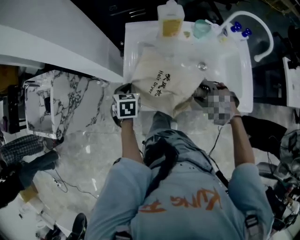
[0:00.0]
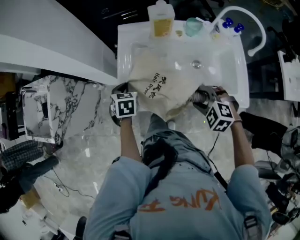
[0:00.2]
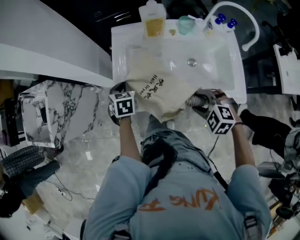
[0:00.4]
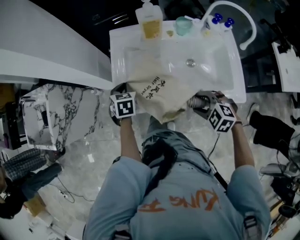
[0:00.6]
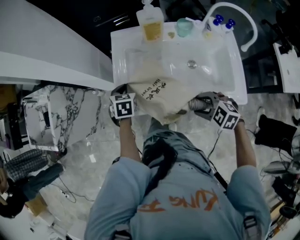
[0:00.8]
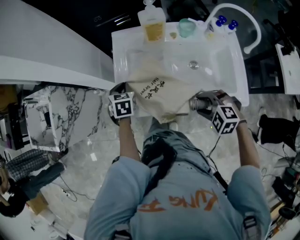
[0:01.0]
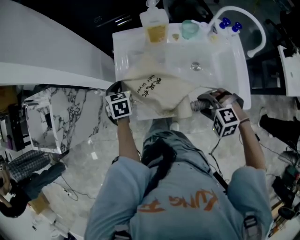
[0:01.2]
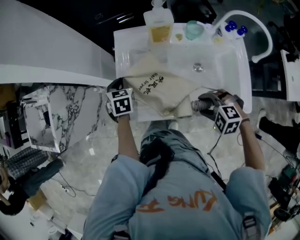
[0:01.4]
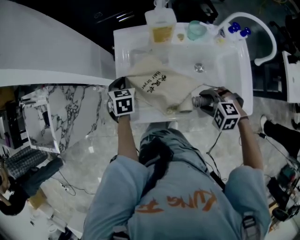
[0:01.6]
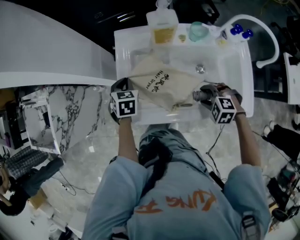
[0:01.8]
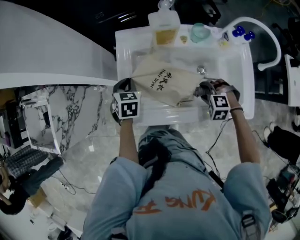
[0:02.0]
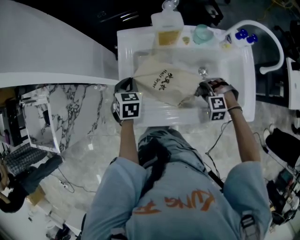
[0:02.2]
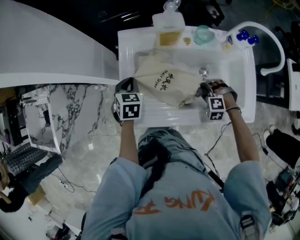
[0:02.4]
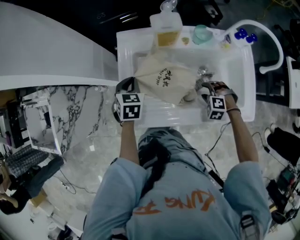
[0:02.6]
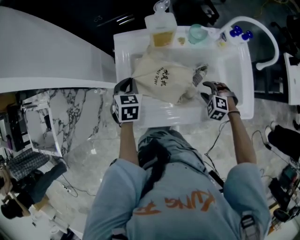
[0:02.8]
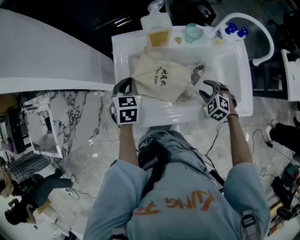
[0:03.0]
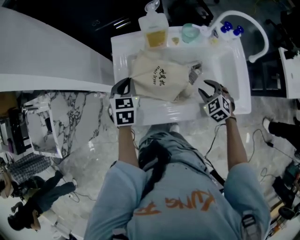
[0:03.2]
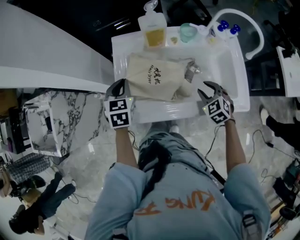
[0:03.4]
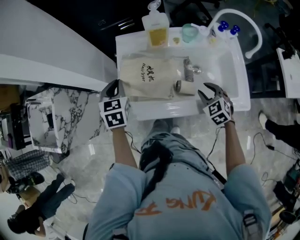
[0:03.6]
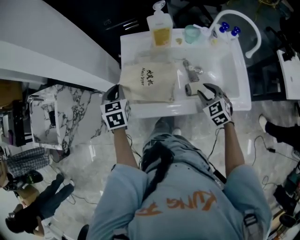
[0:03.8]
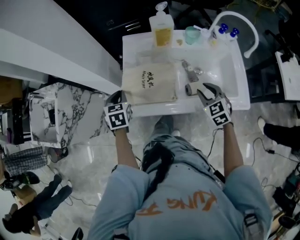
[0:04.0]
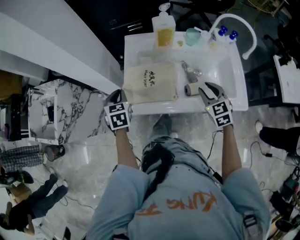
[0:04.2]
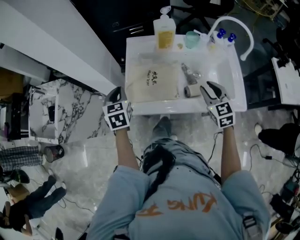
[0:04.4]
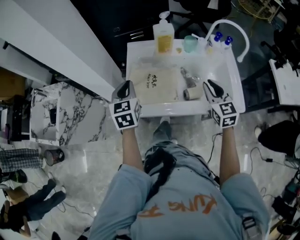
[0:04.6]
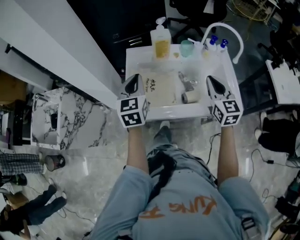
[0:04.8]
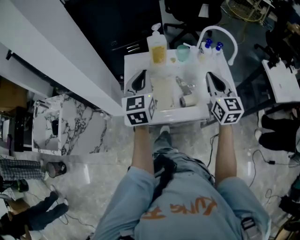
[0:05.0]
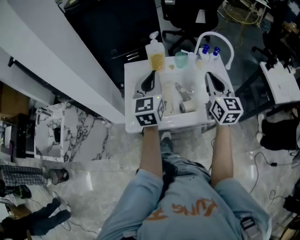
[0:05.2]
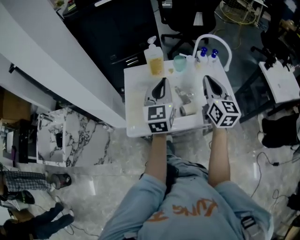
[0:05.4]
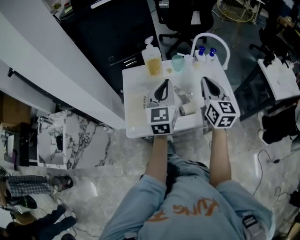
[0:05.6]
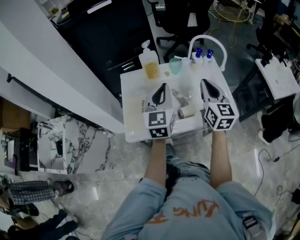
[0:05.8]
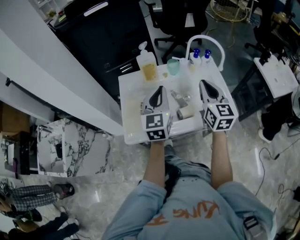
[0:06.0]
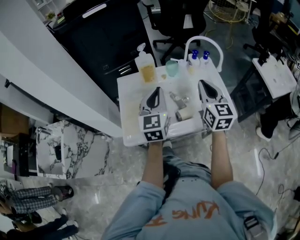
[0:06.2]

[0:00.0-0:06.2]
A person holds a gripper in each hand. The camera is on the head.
0:00.0 to 0:01.6: The left gripper moves forward, roughly 10 cm, while the right gripper travels backward and back again, about 10 cm each way.
0:01.6 to 0:03.2: The right gripper moves about 10 cm downward and comes back, and turns by roughly 40 degrees; the left gripper shifts some 5 cm upward.
0:03.2 to 0:04.6: The left gripper swings up and down, about 10 cm each way, with 2 reversals, and swivels approximately 20 degrees. The right gripper shifts some 20 cm upward, and tilts its fingers some 30 degrees upward.
0:04.6 to 0:06.2: The left gripper shifts approximately 20 cm to the right and upward, and turns by some 30 degrees, while the right gripper shifts some 10 cm upward, and rotates about 20 degrees.

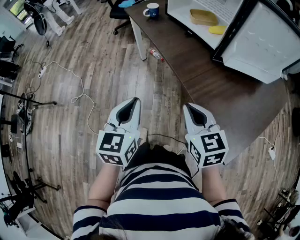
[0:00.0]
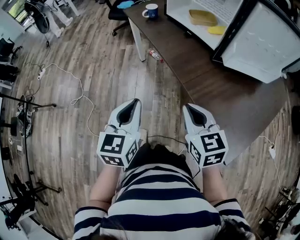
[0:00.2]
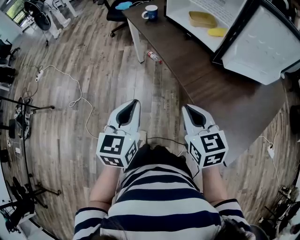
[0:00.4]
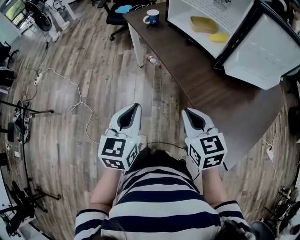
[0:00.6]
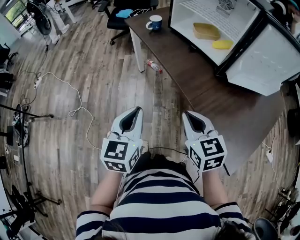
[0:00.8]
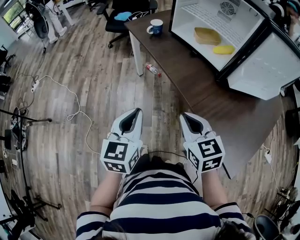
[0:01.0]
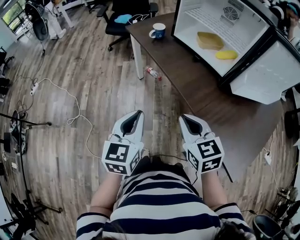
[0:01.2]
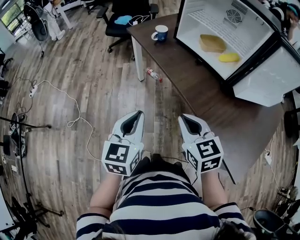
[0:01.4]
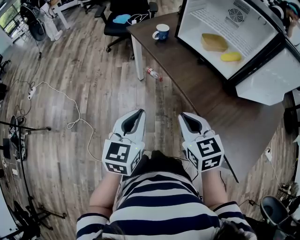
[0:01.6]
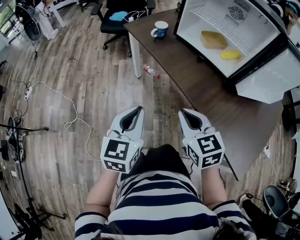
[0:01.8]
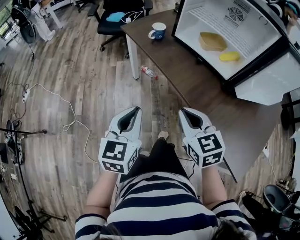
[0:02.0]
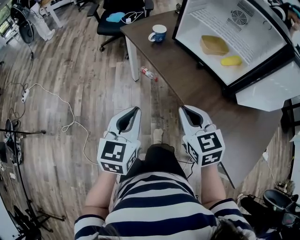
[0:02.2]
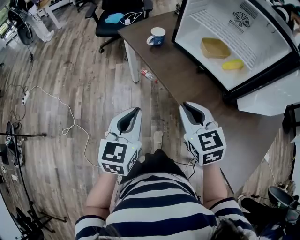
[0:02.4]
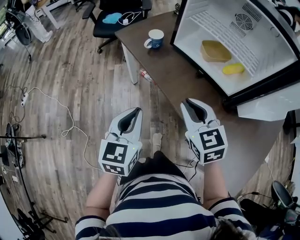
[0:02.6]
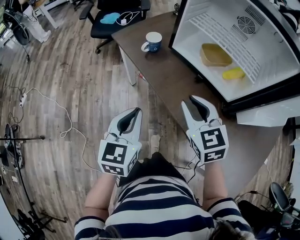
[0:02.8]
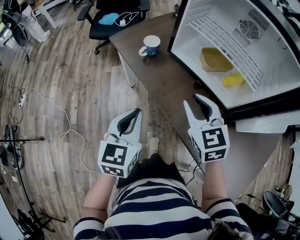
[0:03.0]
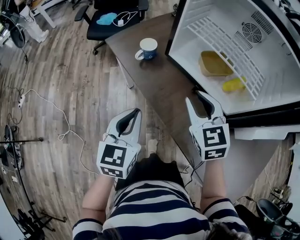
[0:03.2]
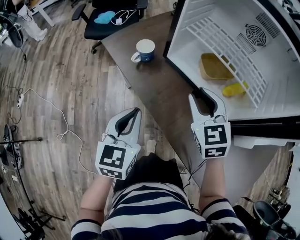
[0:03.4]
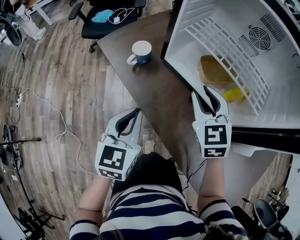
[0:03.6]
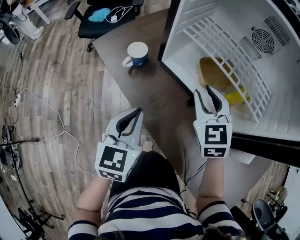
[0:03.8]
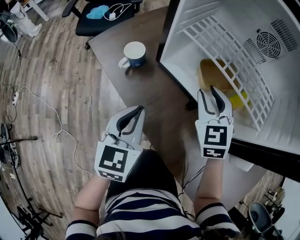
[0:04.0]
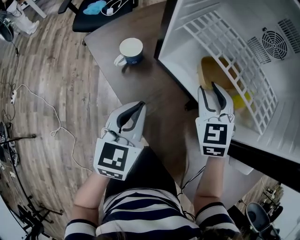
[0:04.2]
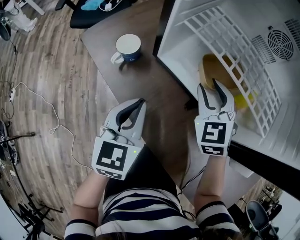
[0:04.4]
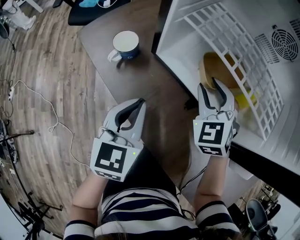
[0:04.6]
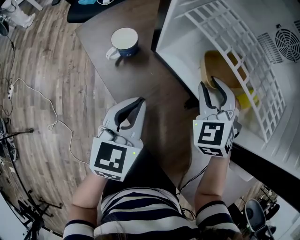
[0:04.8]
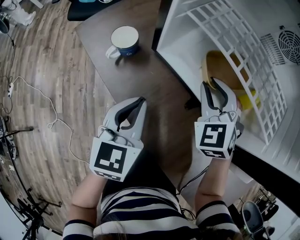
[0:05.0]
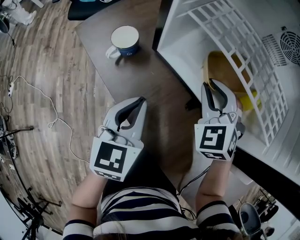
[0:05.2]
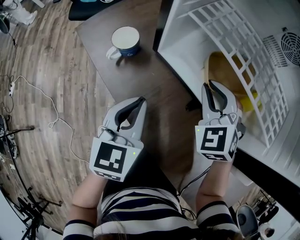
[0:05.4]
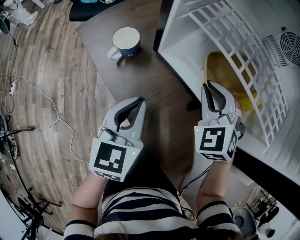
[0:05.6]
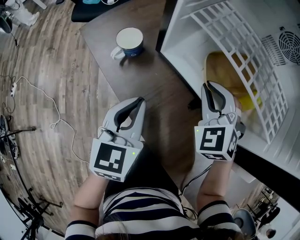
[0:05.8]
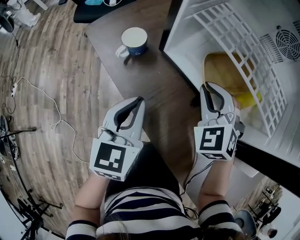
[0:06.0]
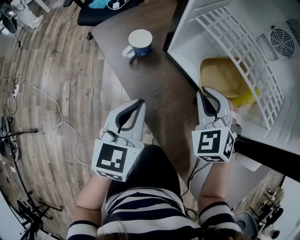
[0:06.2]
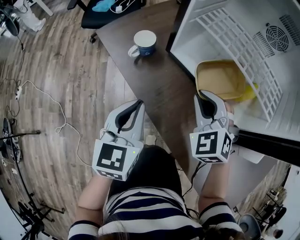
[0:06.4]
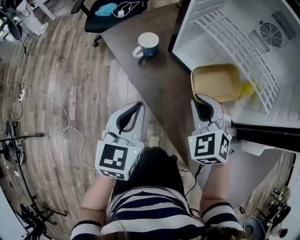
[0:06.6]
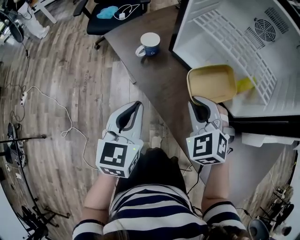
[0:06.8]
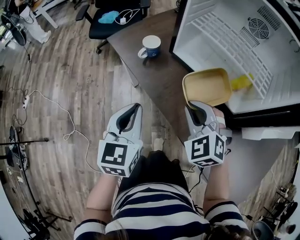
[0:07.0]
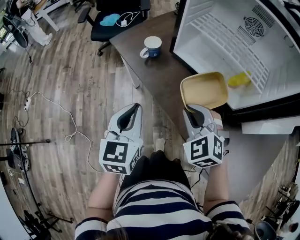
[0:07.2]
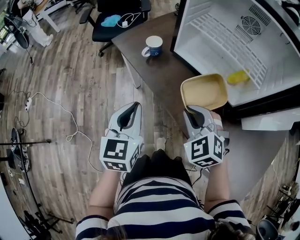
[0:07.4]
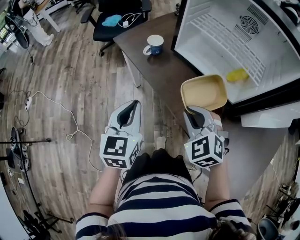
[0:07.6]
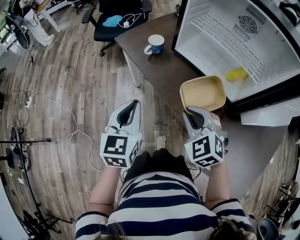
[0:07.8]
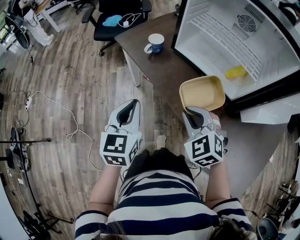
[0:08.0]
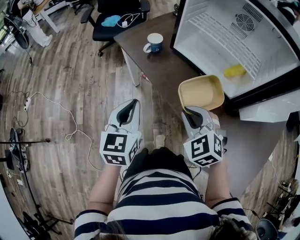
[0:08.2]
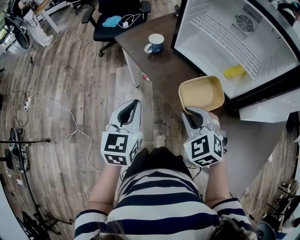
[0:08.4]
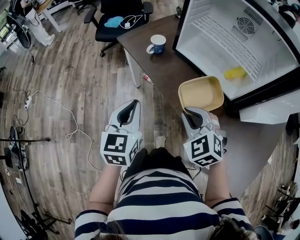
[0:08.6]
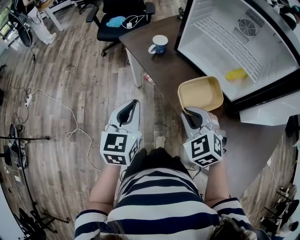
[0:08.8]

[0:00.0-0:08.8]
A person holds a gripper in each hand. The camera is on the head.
0:00.0 to 0:01.4: The two grippers go about 15 cm forward and to the left.
0:01.4 to 0:03.0: The two grippers go roughly 25 cm forward. The right gripper opens.
0:03.0 to 0:04.4: The grippers both shift forward and to the right by roughly 20 cm. The right gripper changes its angle by about 20 degrees.
0:04.4 to 0:05.8: The right gripper closes up.
0:05.8 to 0:07.4: The left gripper heads backward, to the left and upward, covering roughly 20 cm, while the right gripper travels backward and to the left by about 25 cm.
0:07.4 to 0:08.8: The right gripper moves backward, some 5 cm. The left gripper shifts by about 5 cm.

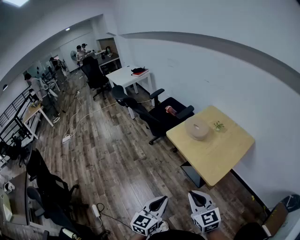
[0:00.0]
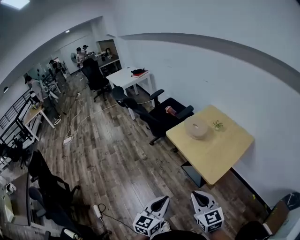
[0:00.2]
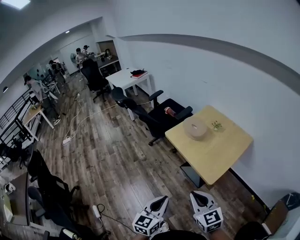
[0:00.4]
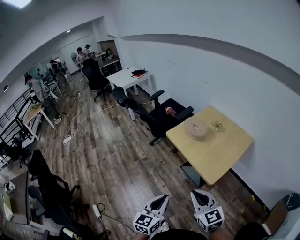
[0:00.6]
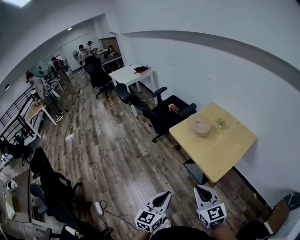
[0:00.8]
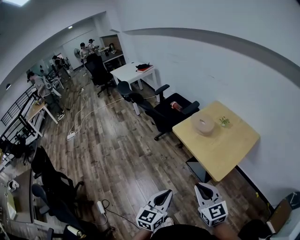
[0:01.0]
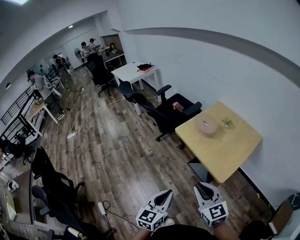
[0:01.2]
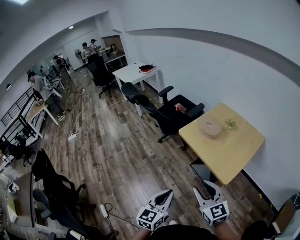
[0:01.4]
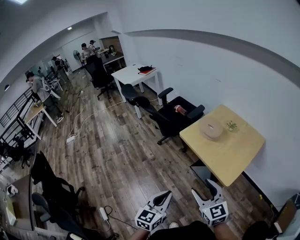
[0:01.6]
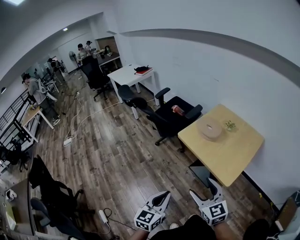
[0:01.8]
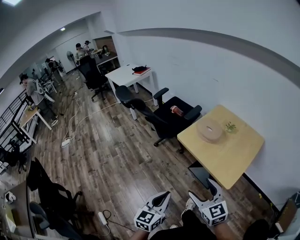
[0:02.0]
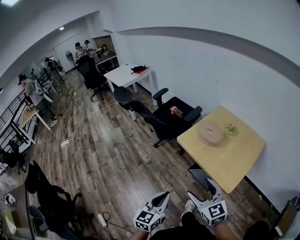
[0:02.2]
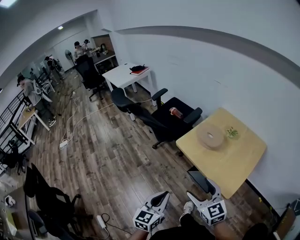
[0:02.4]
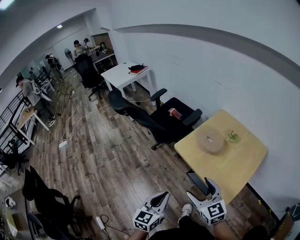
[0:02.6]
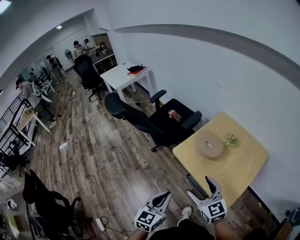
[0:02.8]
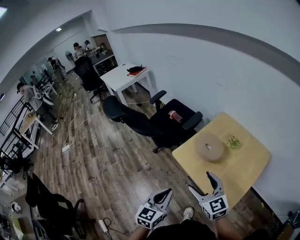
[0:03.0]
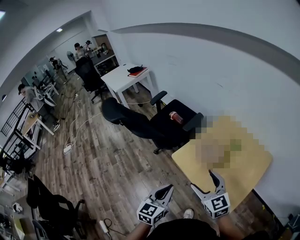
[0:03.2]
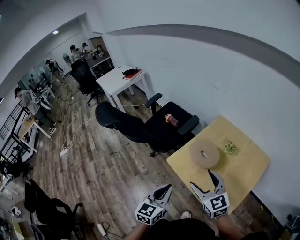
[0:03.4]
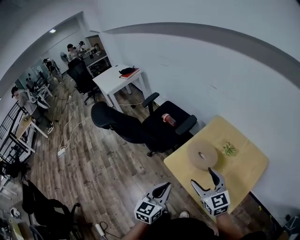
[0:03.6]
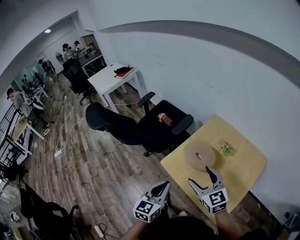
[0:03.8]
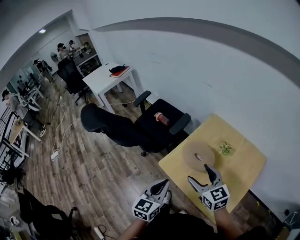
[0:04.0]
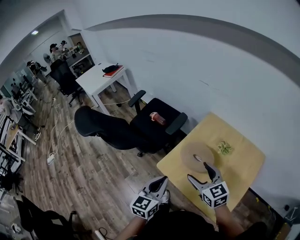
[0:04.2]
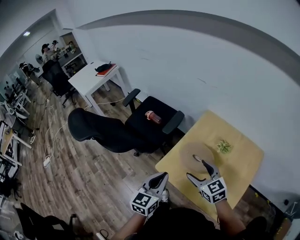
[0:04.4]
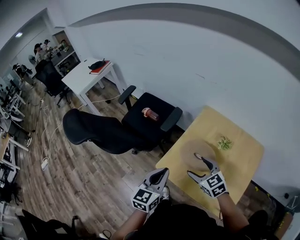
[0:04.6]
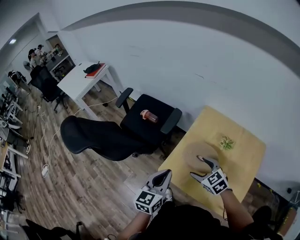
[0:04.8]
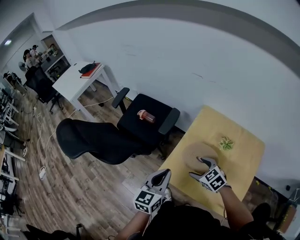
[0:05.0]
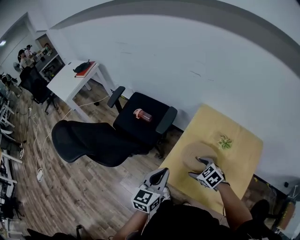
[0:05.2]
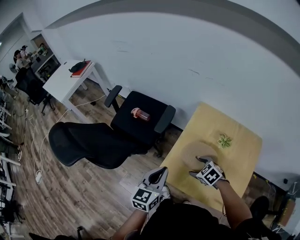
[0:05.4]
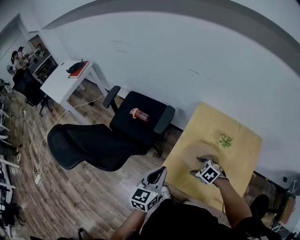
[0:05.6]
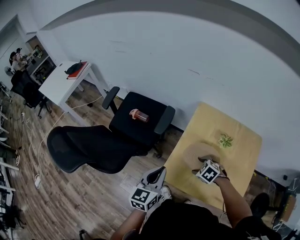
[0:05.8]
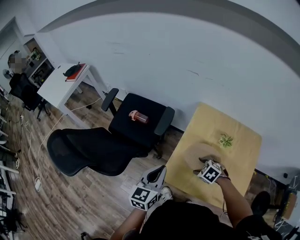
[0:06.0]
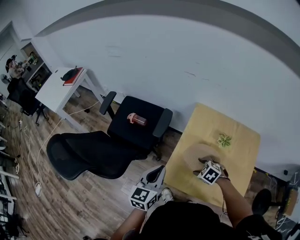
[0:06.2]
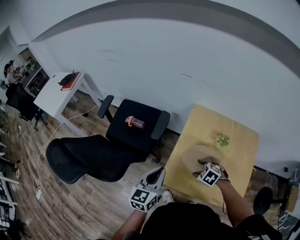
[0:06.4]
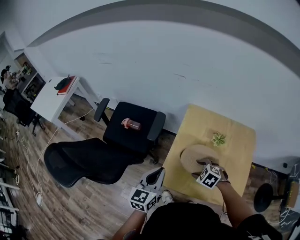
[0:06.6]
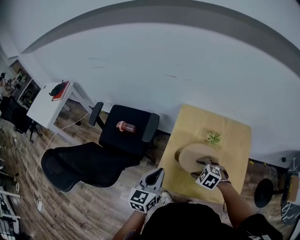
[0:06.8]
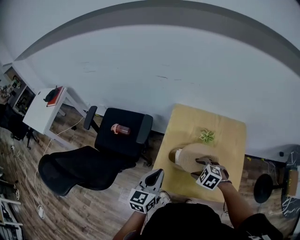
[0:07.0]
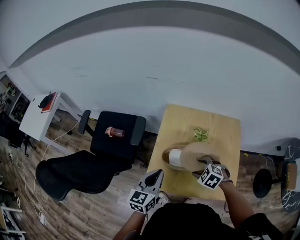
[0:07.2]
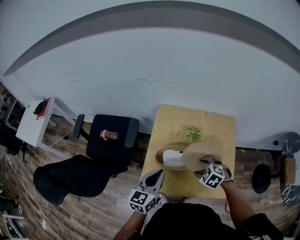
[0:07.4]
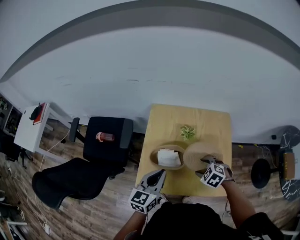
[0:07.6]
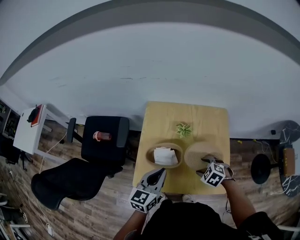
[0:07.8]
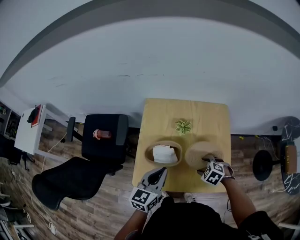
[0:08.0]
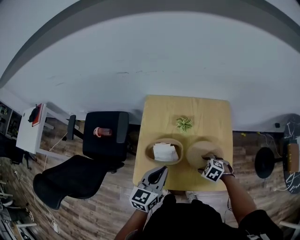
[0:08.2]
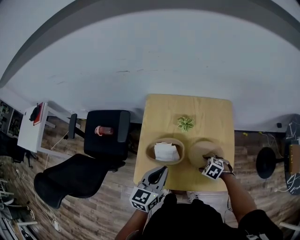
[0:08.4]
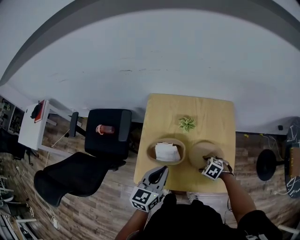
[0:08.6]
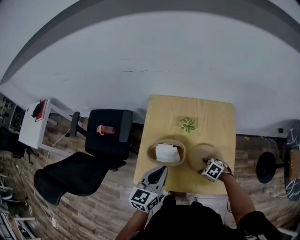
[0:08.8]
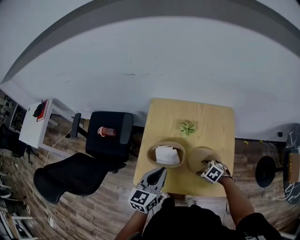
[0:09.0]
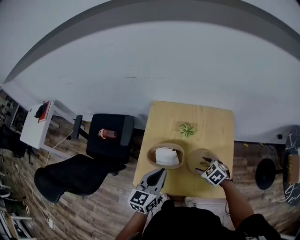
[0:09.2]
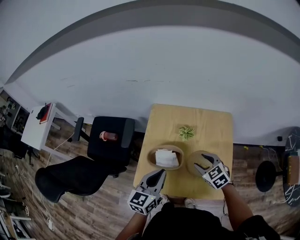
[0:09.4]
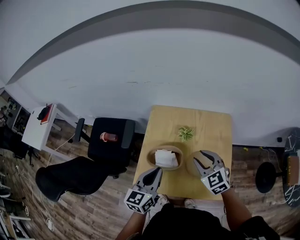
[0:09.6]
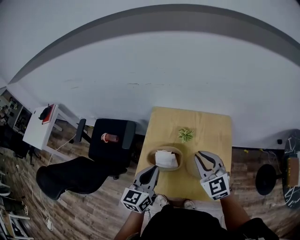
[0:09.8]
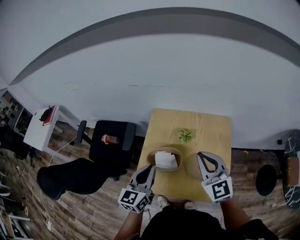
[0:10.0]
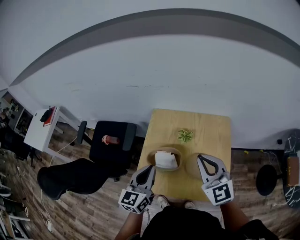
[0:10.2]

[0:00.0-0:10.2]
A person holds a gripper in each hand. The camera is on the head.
0:00.0 to 0:01.4: The two grippers go some 5 cm to the left. The right gripper opens its fingers.
0:01.4 to 0:03.0: The two grippers go about 25 cm forward. The right gripper opens its fingers.
0:03.0 to 0:04.4: Both grippers move forward, roughly 20 cm.
0:04.4 to 0:05.8: The right gripper shifts about 20 cm downward and forward, and points its fingers roughly 40 degrees further downward; the left gripper goes roughly 15 cm forward and to the left.
0:05.8 to 0:07.2: The left gripper is displaced to the right by approximately 10 cm; the right gripper heads to the right and upward, covering approximately 10 cm.
0:07.2 to 0:08.8: The right gripper heads downward and to the right, covering approximately 15 cm; the left gripper is displaced to the right by roughly 10 cm.
0:08.8 to 0:10.2: The left gripper moves upward, about 10 cm, while the right gripper heads upward, covering approximately 35 cm, tilts its fingers some 60 degrees upward, and closes its fingers.
